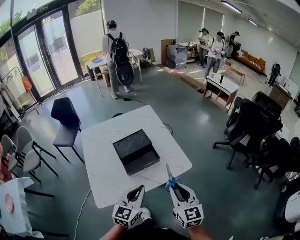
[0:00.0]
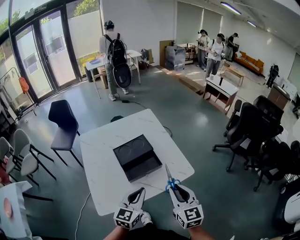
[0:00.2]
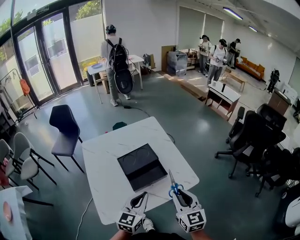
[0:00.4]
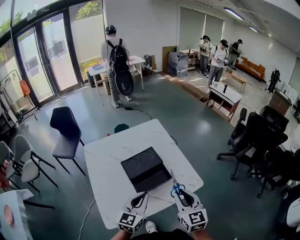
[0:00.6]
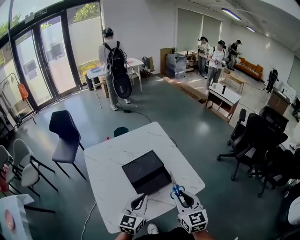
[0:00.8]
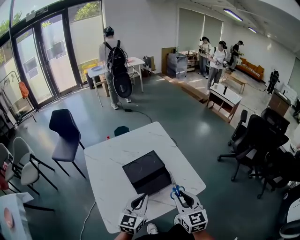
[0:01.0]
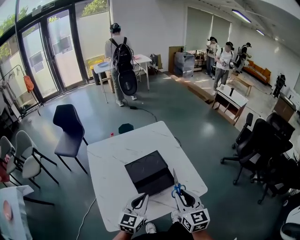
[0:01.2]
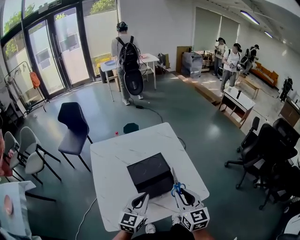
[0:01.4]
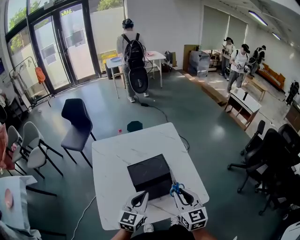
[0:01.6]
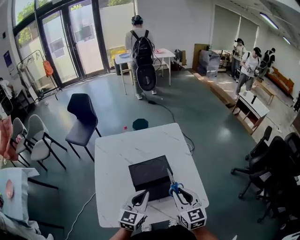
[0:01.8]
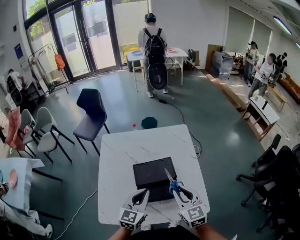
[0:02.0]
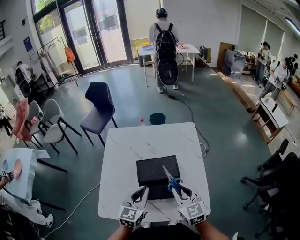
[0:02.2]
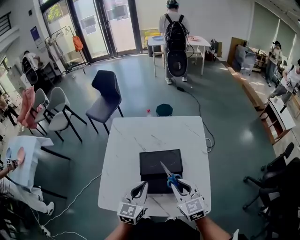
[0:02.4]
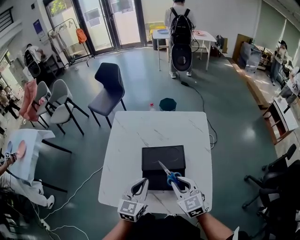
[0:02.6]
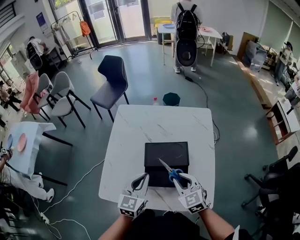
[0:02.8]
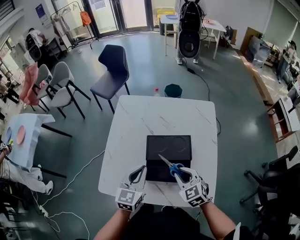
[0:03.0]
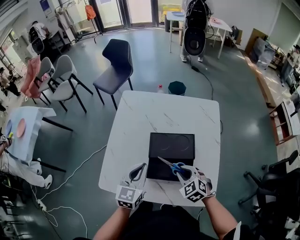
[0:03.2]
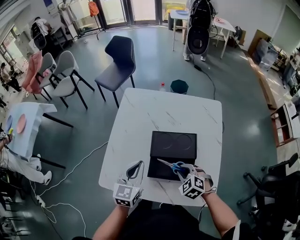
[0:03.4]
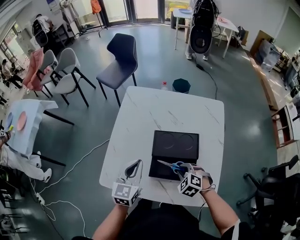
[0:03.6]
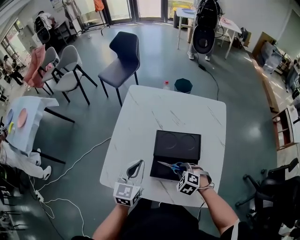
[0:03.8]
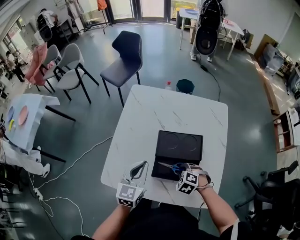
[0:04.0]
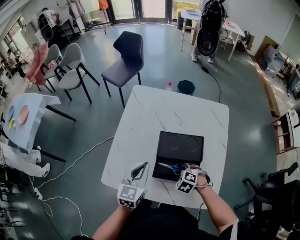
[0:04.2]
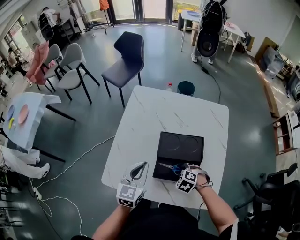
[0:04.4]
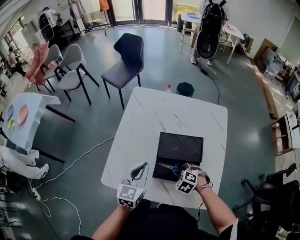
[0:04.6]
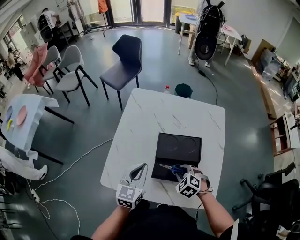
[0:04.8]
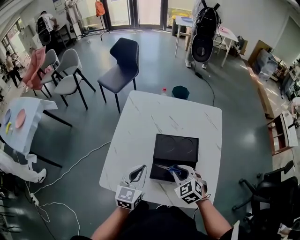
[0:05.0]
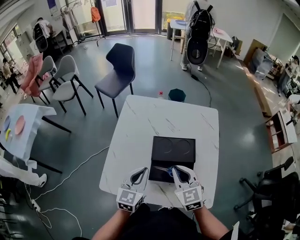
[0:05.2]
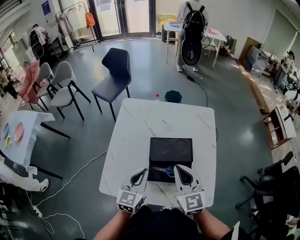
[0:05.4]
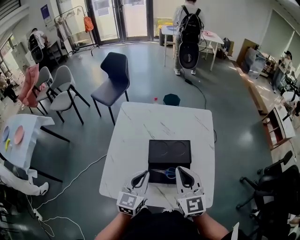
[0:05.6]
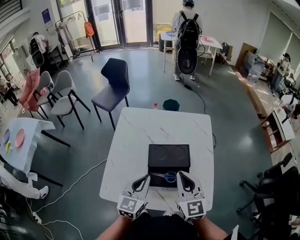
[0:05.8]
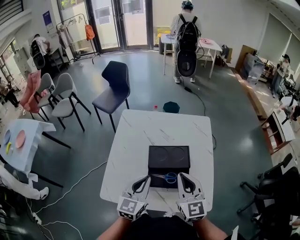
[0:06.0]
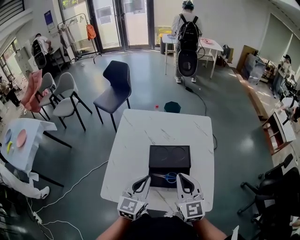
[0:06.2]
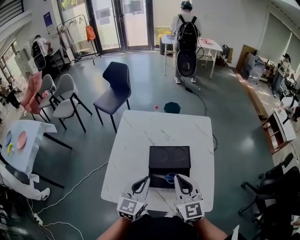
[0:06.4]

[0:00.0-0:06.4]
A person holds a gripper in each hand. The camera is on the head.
0:00.0 to 0:01.6: The right gripper moves forward, roughly 20 cm, while the left gripper travels forward and to the left by approximately 20 cm.
0:01.6 to 0:03.2: The left gripper moves about 10 cm, and turns by some 30 degrees. Meanwhile the right gripper moves downward, some 15 cm, and points its fingers some 30 degrees further downward.
0:04.8 to 0:06.4: The left gripper goes some 5 cm upward. The right gripper shifts about 20 cm upward, tips its fingers upward by some 50 degrees, and closes its fingers.

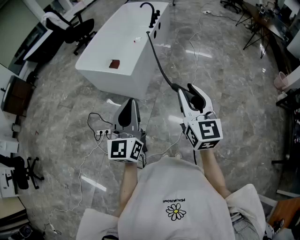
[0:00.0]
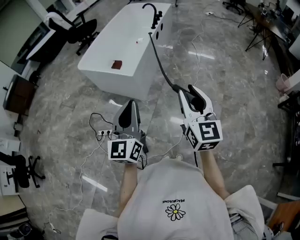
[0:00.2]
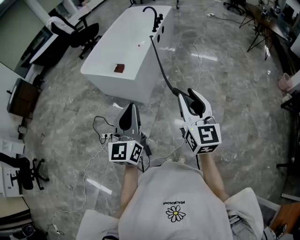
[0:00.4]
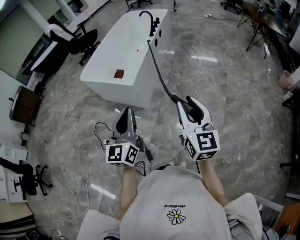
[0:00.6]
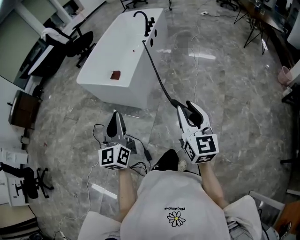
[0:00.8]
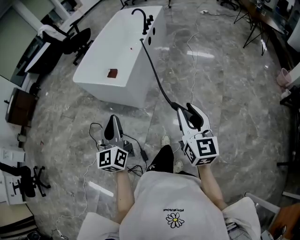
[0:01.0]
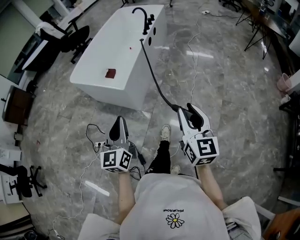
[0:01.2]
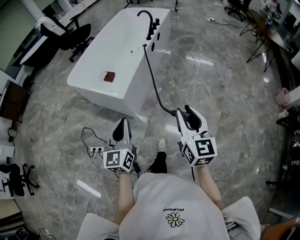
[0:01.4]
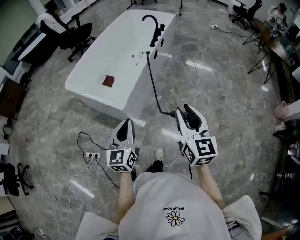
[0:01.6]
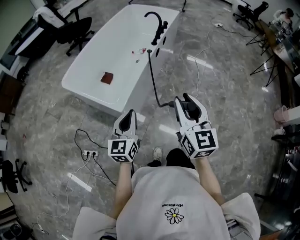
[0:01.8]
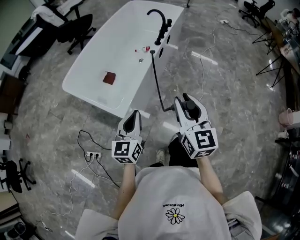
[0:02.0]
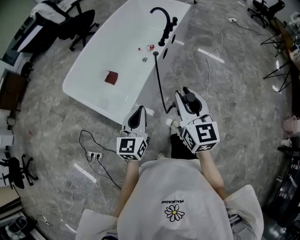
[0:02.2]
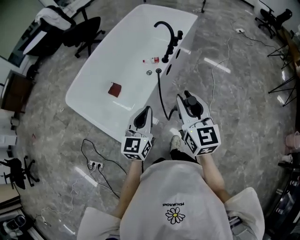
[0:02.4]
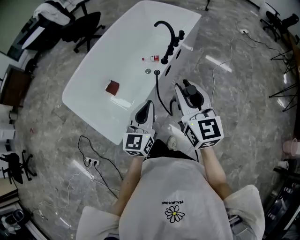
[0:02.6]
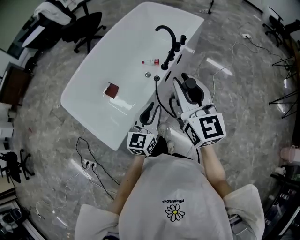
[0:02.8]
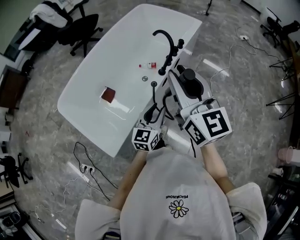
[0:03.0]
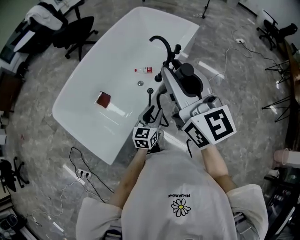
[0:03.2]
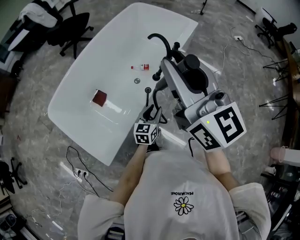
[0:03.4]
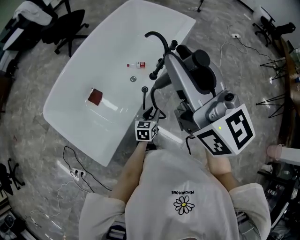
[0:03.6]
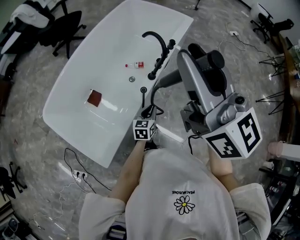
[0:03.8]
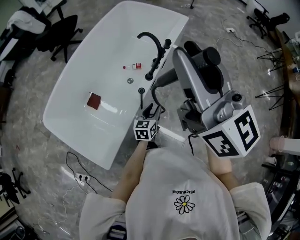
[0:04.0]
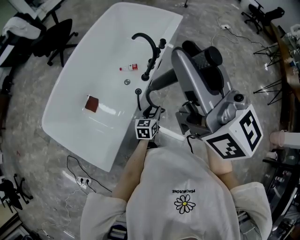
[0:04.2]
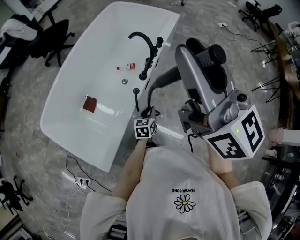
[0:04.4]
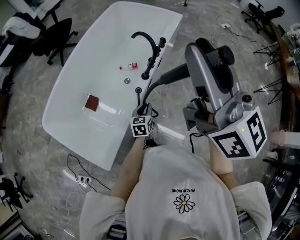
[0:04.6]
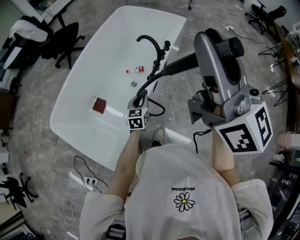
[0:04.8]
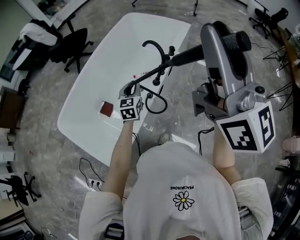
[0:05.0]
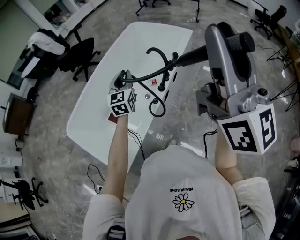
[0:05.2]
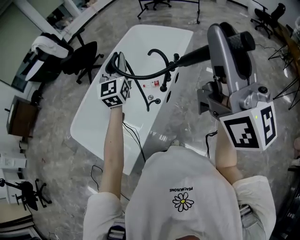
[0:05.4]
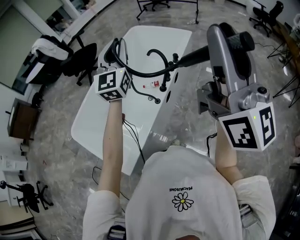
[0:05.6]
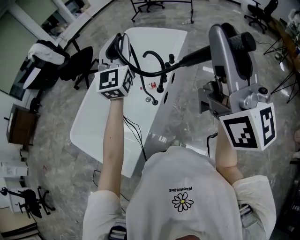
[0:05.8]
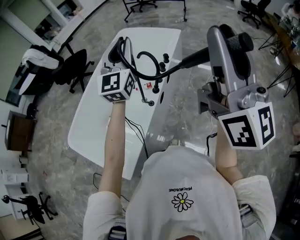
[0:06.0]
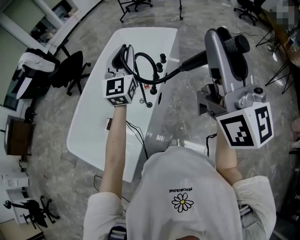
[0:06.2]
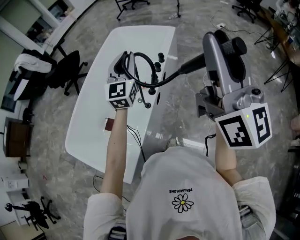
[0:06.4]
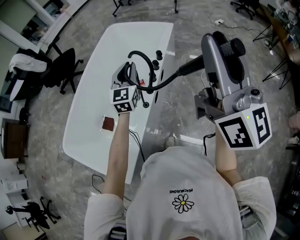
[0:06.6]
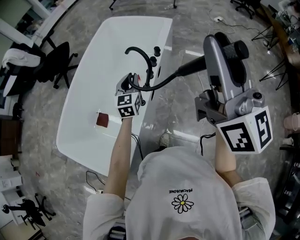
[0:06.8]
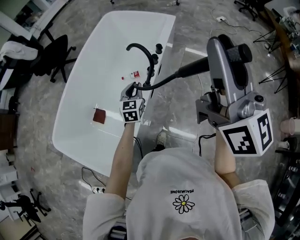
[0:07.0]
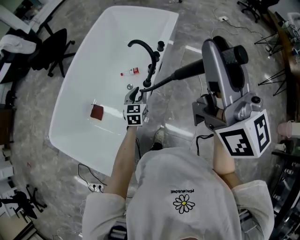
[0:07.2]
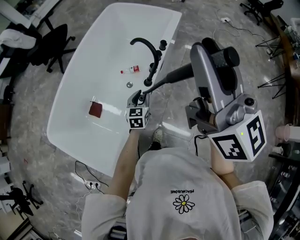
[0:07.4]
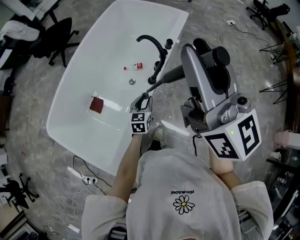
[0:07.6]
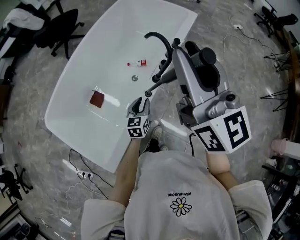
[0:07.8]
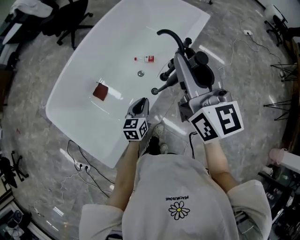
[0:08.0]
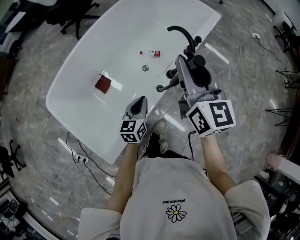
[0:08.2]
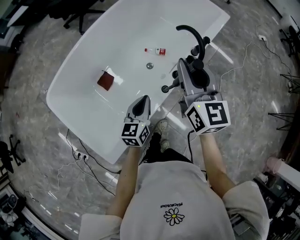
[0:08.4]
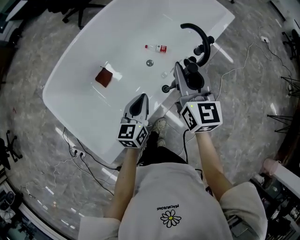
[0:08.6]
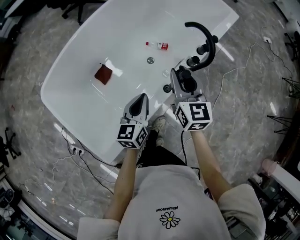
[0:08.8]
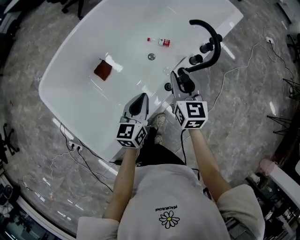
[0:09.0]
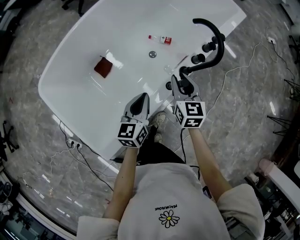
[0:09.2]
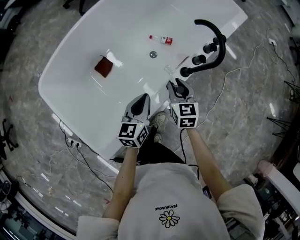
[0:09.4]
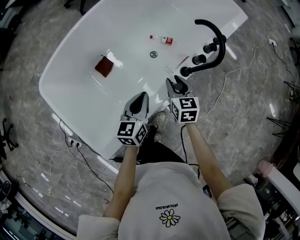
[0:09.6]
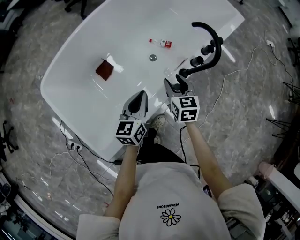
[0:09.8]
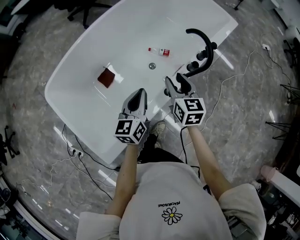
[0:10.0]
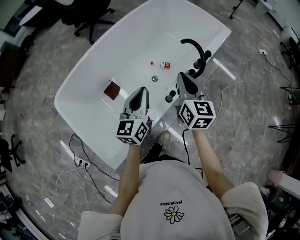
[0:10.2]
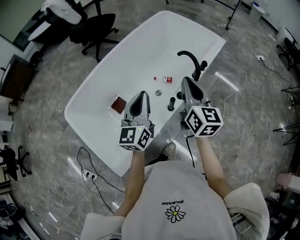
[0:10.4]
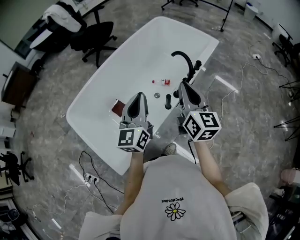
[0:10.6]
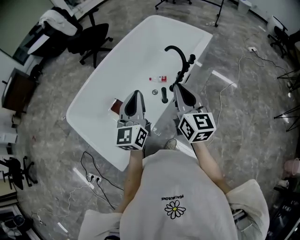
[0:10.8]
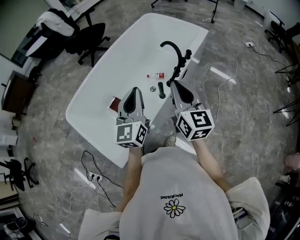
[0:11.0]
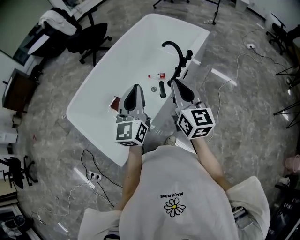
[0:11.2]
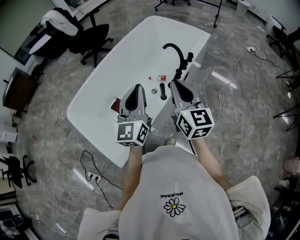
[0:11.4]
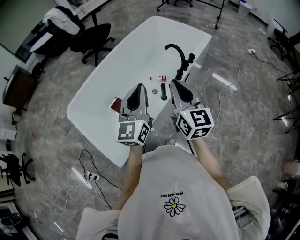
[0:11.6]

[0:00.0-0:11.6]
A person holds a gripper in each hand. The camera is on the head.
0:00.0 to 0:01.4: The two grippers go about 20 cm forward and downward.
0:01.4 to 0:02.8: The pair of grippers is taken forward, roughly 60 cm. The left gripper opens its fingers. The right gripper changes its angle by some 20 degrees.
0:02.8 to 0:04.4: The left gripper goes roughly 25 cm downward and forward, and turns by some 30 degrees. Meanwhile the right gripper moves upward and forward, roughly 20 cm.
0:04.4 to 0:05.8: The left gripper moves upward, some 50 cm, and tilts its fingers roughly 50 degrees upward. The right gripper goes some 15 cm to the right, backward and upward, and swivels about 30 degrees.
0:05.8 to 0:07.2: The left gripper goes about 40 cm downward, and points its fingers some 40 degrees further downward; the right gripper travels forward and downward by approximately 15 cm.
0:07.2 to 0:08.8: The left gripper is displaced to the left by roughly 15 cm, swivels about 30 degrees, and closes; the right gripper travels downward, to the left and forward by about 40 cm, and tilts its fingers approximately 40 degrees downward.
0:08.8 to 0:10.2: The left gripper shifts some 10 cm upward. Meanwhile the right gripper travels downward and back again, approximately 15 cm each way, and closes.
0:10.2 to 0:11.6: The left gripper travels upward and backward by roughly 20 cm, and turns by approximately 20 degrees, while the right gripper shifts some 25 cm backward and upward.

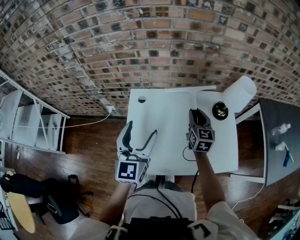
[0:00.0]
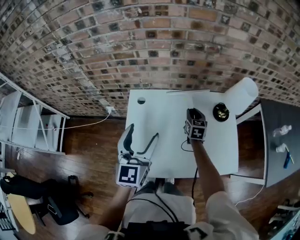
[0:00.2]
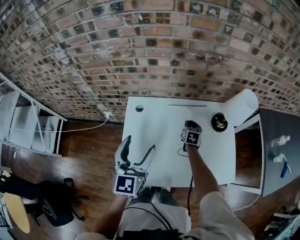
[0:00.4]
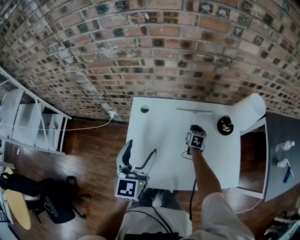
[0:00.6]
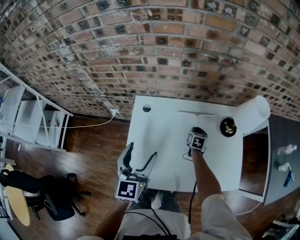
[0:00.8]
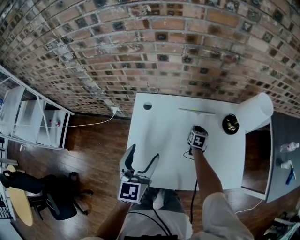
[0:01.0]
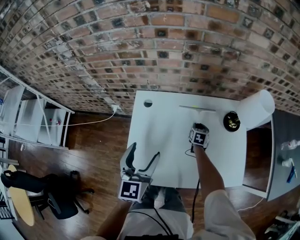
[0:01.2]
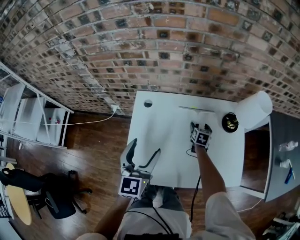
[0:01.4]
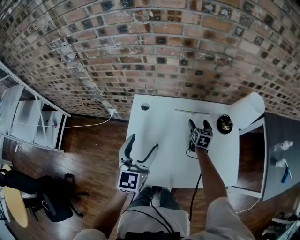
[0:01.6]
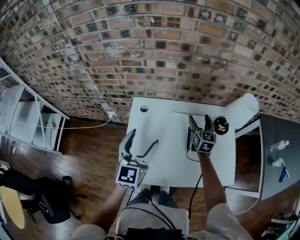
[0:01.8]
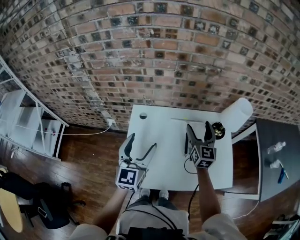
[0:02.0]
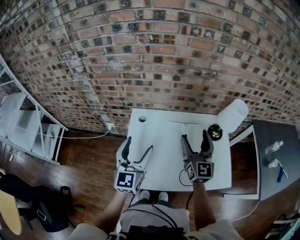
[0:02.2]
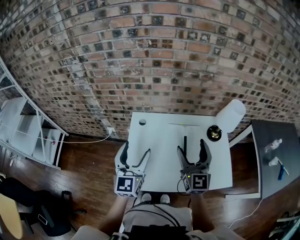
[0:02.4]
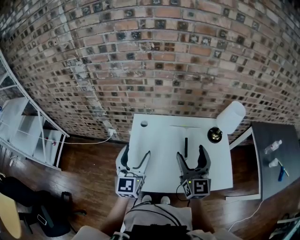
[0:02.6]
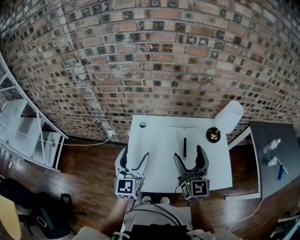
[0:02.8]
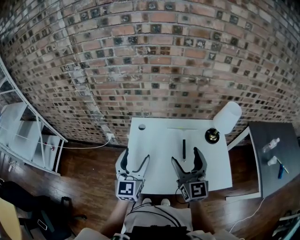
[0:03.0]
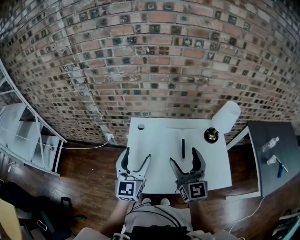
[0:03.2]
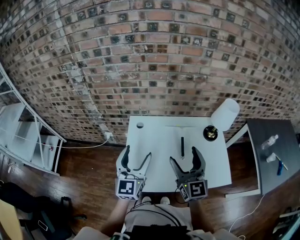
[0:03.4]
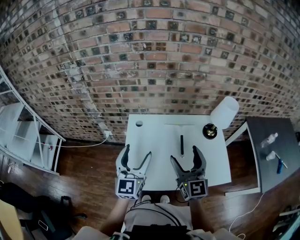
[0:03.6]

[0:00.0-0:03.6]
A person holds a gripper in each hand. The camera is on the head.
0:00.0 to 0:01.8: The right gripper is displaced forward by approximately 5 cm, moves roughly 25 cm downward and comes back, and opens up.
0:01.8 to 0:03.6: The left gripper heads backward, covering some 5 cm. The right gripper goes about 30 cm backward and upward, and swivels some 30 degrees.

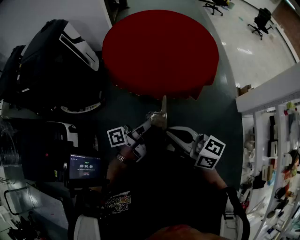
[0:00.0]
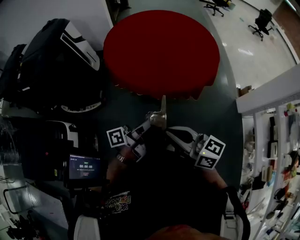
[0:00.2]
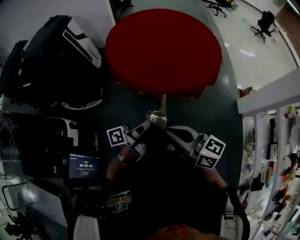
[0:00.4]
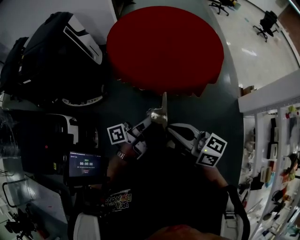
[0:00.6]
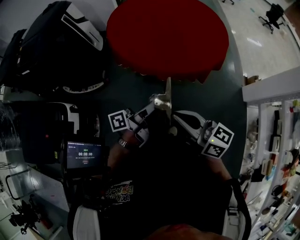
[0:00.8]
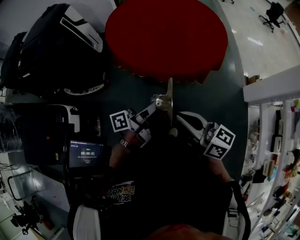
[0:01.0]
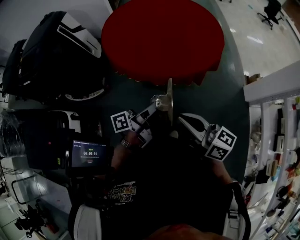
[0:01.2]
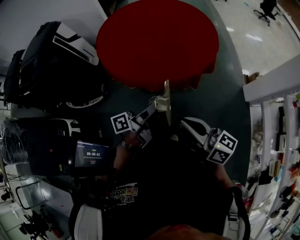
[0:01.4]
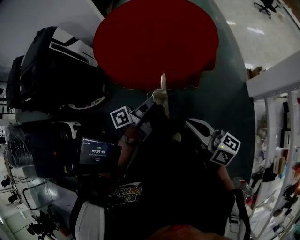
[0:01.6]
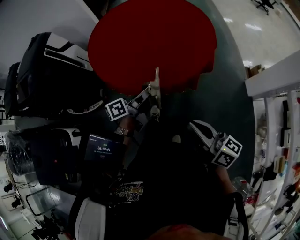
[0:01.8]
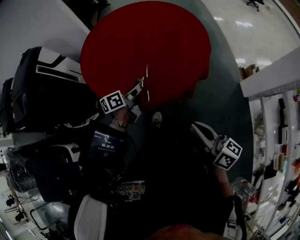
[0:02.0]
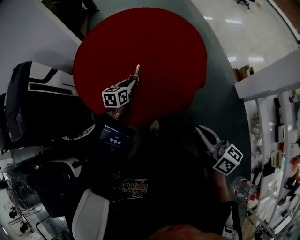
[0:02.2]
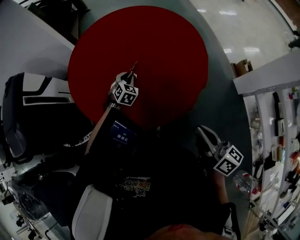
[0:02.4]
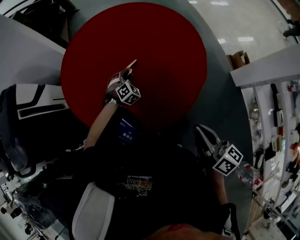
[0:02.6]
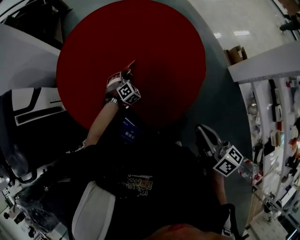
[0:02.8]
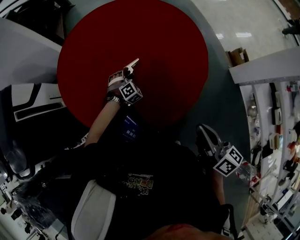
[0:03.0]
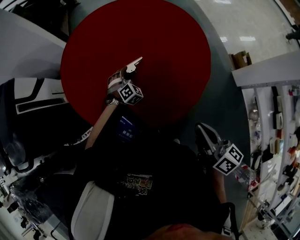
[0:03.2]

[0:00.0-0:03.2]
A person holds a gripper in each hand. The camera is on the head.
0:00.0 to 0:01.6: The left gripper goes some 15 cm to the right and forward; the right gripper is displaced to the right by roughly 15 cm.
0:01.6 to 0:03.2: The right gripper moves forward, roughly 25 cm, and rotates about 30 degrees. Meanwhile the left gripper travels forward and downward by some 50 cm, and rolls clockwise, seen from behind, by roughly 120 degrees.
